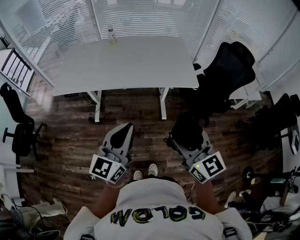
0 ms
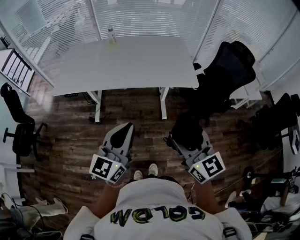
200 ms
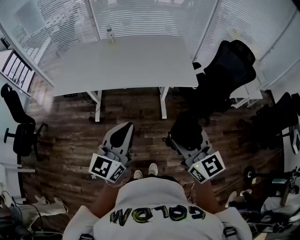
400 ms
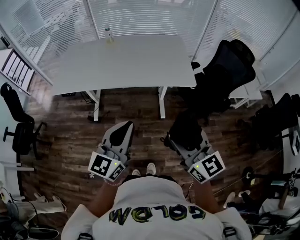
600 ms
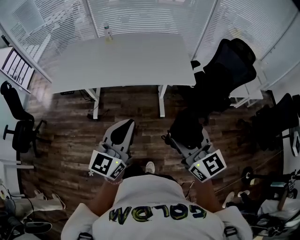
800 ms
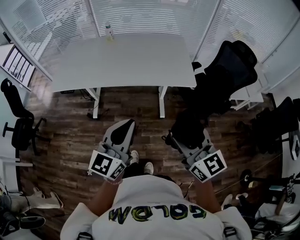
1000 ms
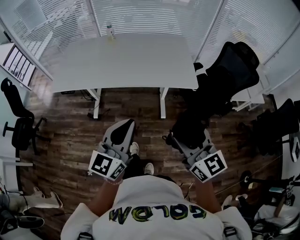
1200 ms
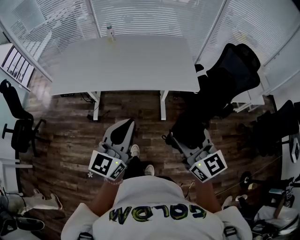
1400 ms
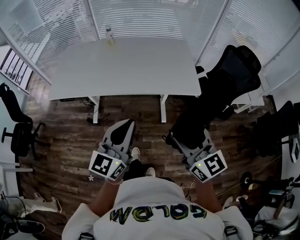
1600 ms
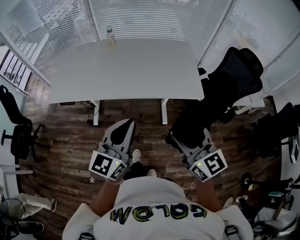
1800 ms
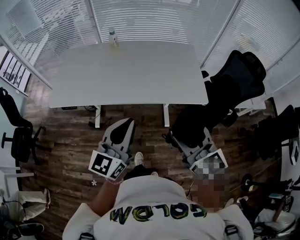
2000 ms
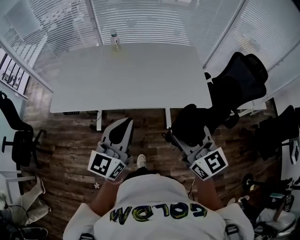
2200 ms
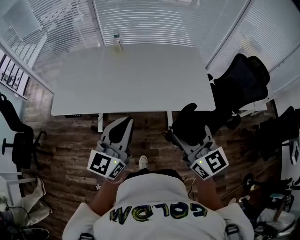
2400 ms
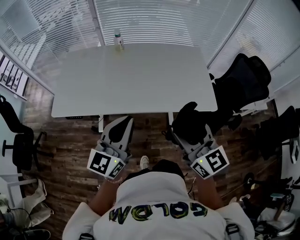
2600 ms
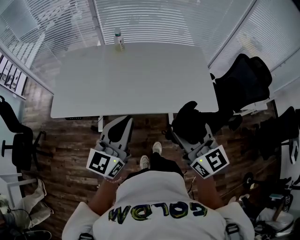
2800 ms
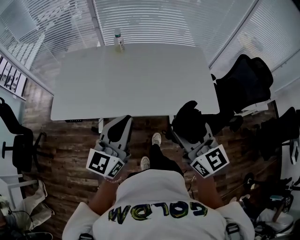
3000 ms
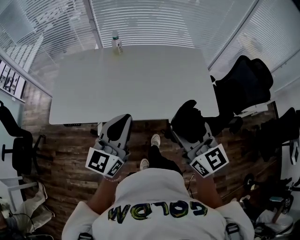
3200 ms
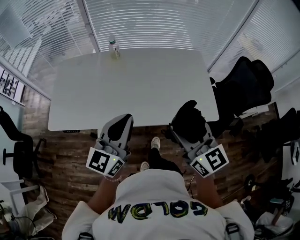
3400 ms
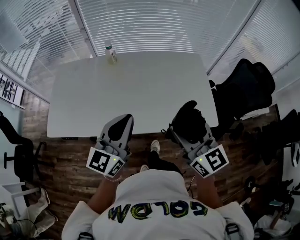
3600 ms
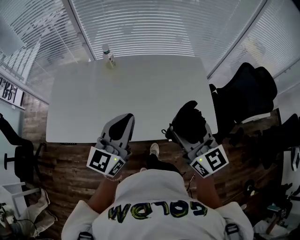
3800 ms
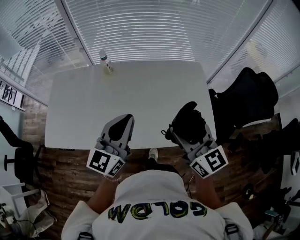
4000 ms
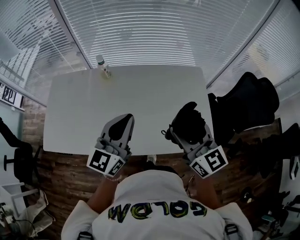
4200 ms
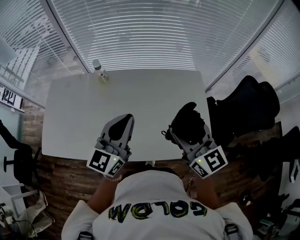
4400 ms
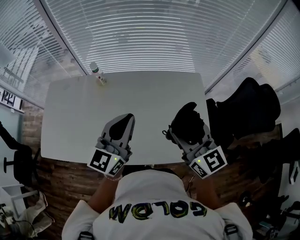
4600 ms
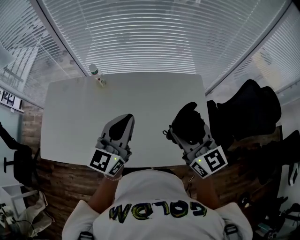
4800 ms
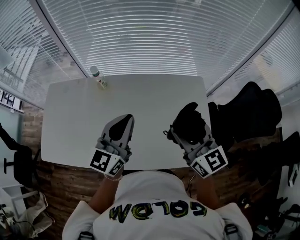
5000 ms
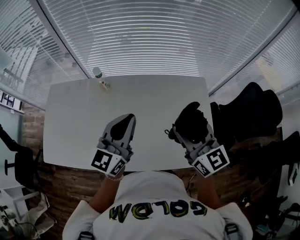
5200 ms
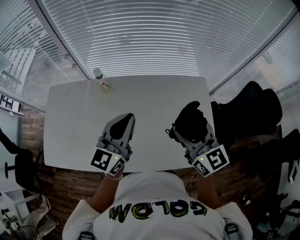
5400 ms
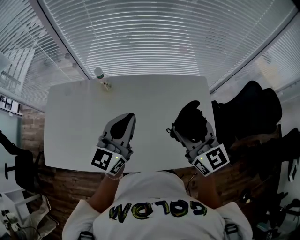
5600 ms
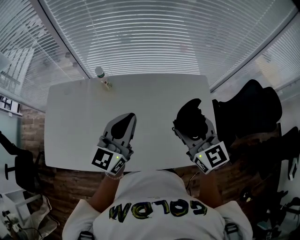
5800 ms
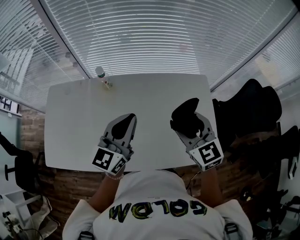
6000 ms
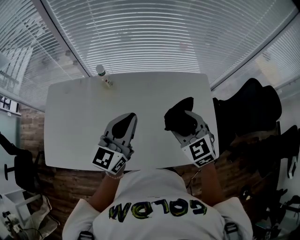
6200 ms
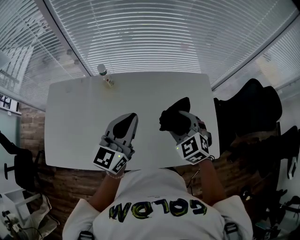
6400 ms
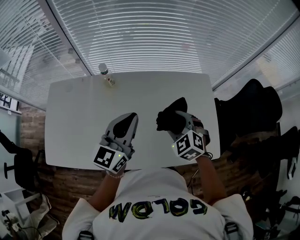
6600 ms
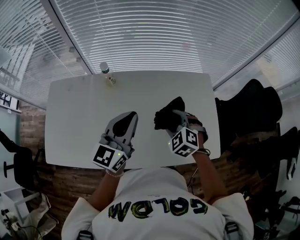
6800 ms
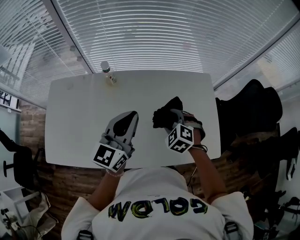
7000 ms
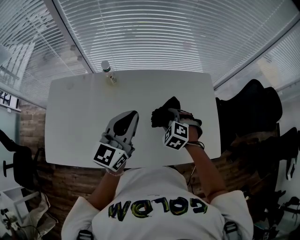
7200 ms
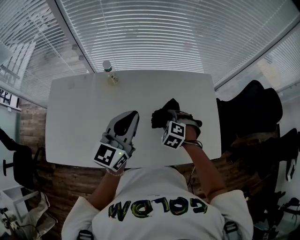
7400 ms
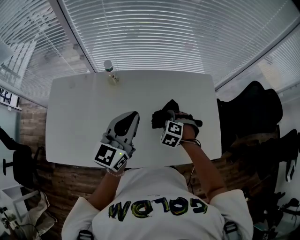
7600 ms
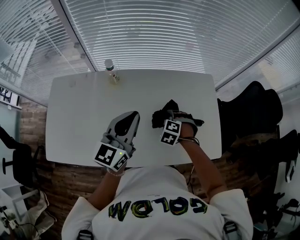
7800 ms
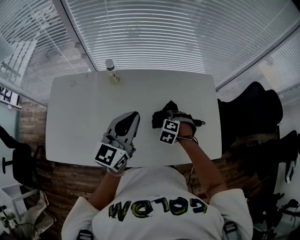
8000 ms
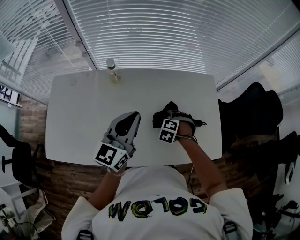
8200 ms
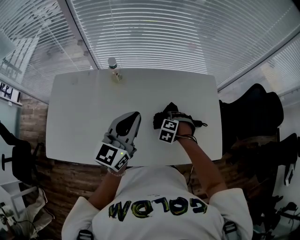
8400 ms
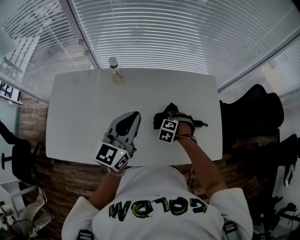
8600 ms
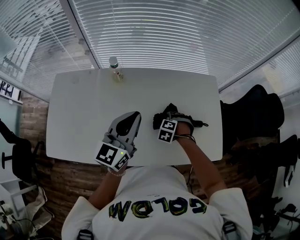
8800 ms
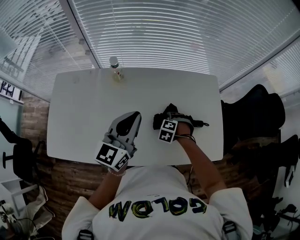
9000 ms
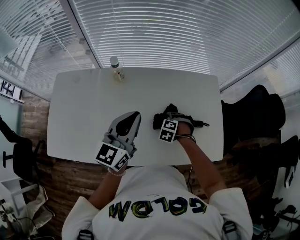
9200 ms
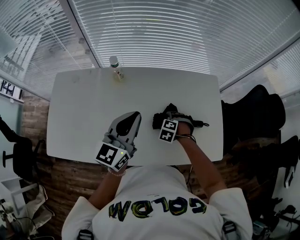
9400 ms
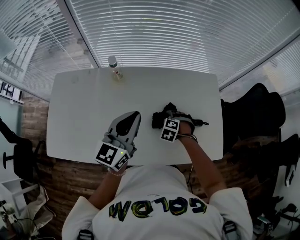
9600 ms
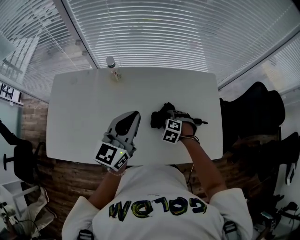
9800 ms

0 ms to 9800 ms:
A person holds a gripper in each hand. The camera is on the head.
0 ms to 1400 ms: Both grippers move forward, some 5 cm.
1400 ms to 2800 ms: The two grippers go about 25 cm forward and to the left.
2800 ms to 4200 ms: Both grippers move forward, about 25 cm.
4200 ms to 5600 ms: The two grippers go about 10 cm forward.
5600 ms to 7000 ms: The right gripper shifts approximately 20 cm downward, and tips its fingers downward by about 50 degrees.
7000 ms to 8400 ms: The right gripper heads downward, covering roughly 15 cm, and changes its angle by roughly 20 degrees.
8400 ms to 9800 ms: There are only small adjustments of the grippers.

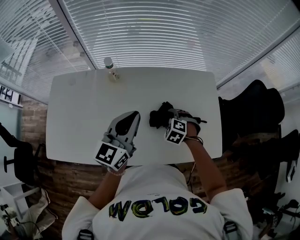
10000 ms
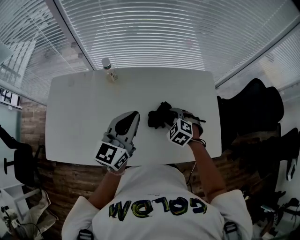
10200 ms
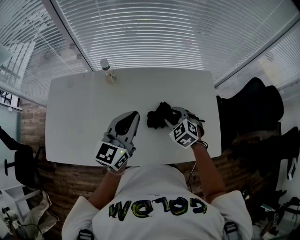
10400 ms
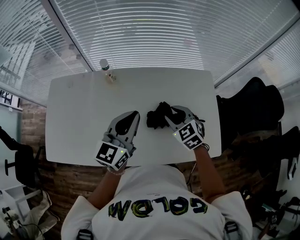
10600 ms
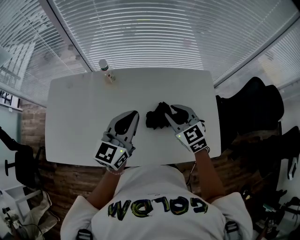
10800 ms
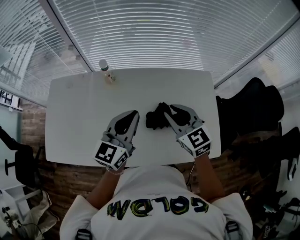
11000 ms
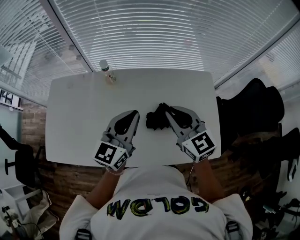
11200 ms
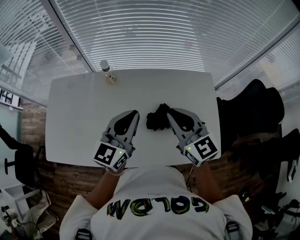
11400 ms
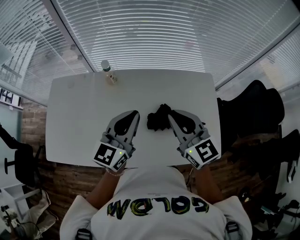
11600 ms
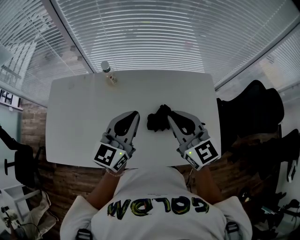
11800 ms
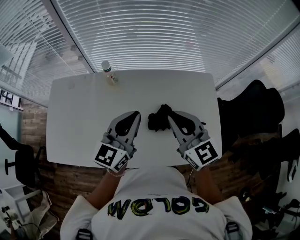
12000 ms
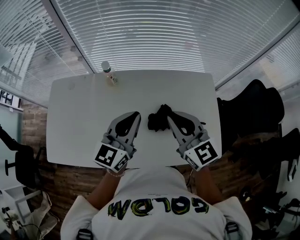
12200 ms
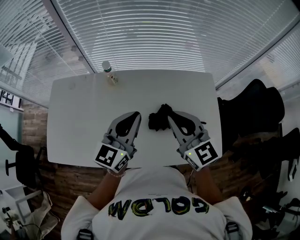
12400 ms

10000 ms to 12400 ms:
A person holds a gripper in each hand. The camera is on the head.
10000 ms to 11200 ms: The right gripper is displaced upward by approximately 25 cm, angles its fingers upward, by roughly 50 degrees, and closes up.
11200 ms to 12400 ms: The grippers make only small movements.

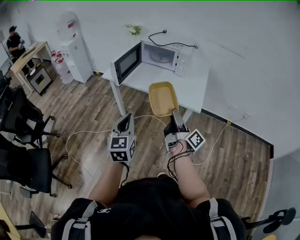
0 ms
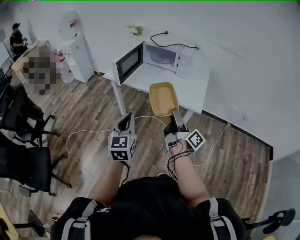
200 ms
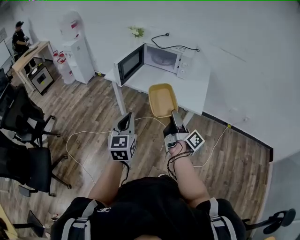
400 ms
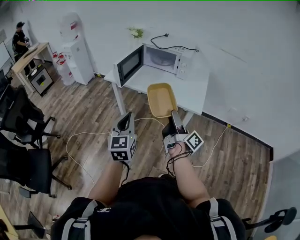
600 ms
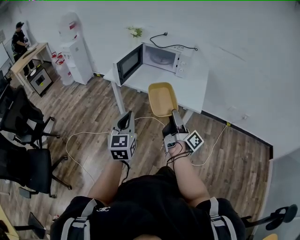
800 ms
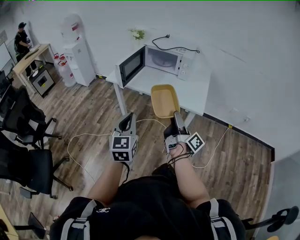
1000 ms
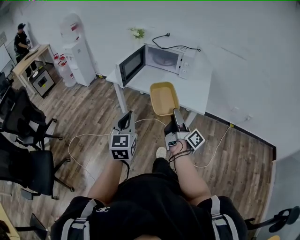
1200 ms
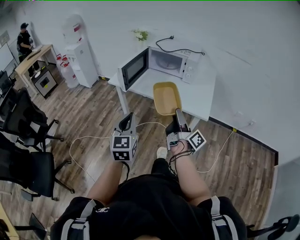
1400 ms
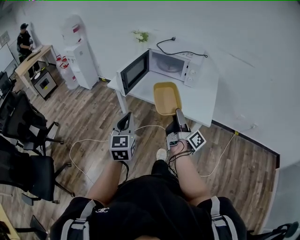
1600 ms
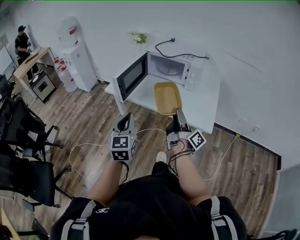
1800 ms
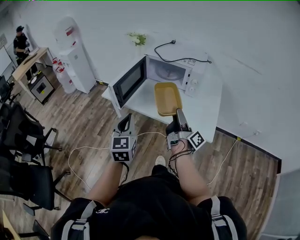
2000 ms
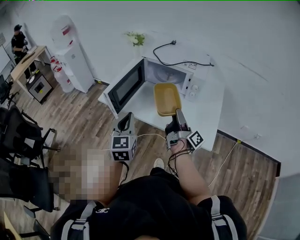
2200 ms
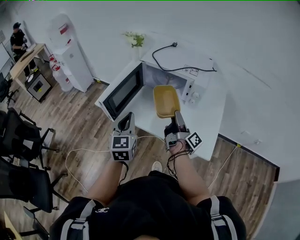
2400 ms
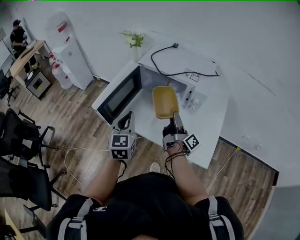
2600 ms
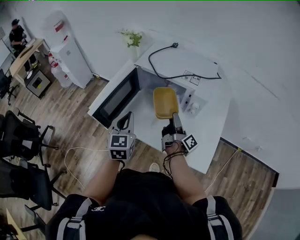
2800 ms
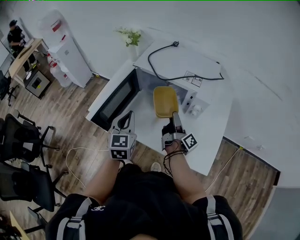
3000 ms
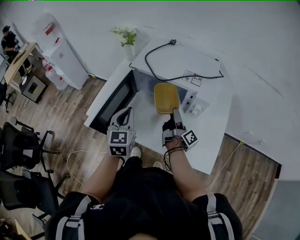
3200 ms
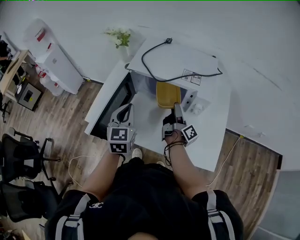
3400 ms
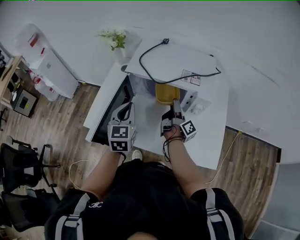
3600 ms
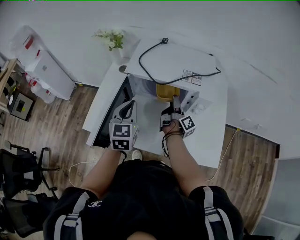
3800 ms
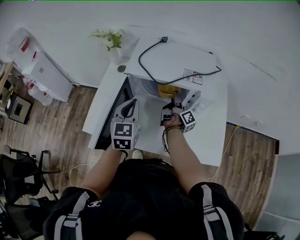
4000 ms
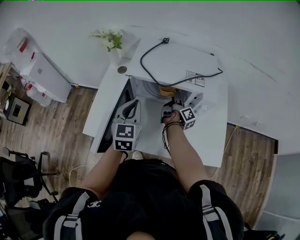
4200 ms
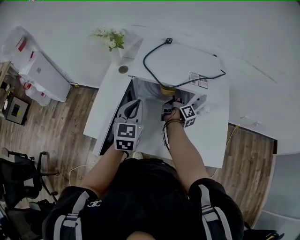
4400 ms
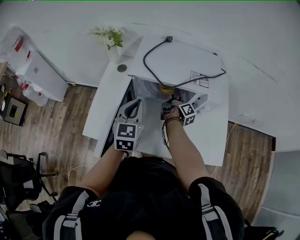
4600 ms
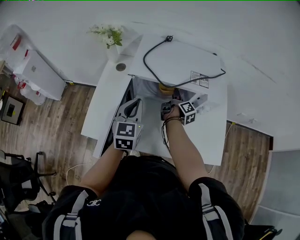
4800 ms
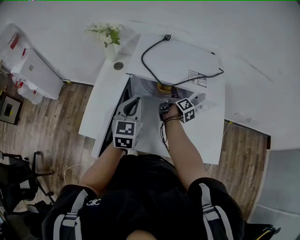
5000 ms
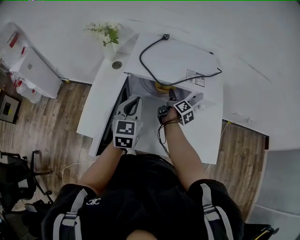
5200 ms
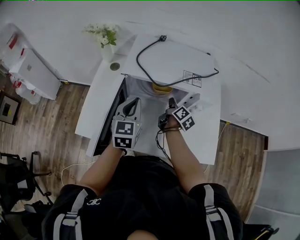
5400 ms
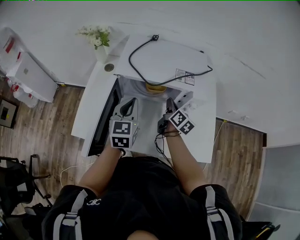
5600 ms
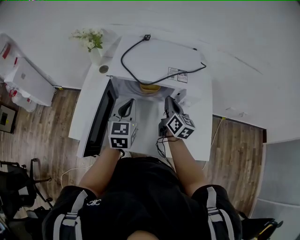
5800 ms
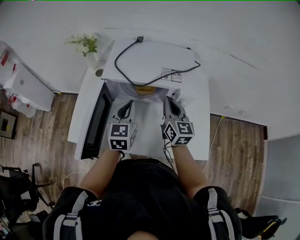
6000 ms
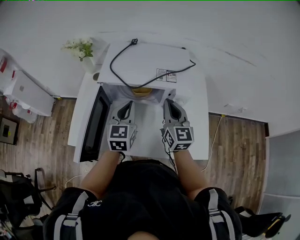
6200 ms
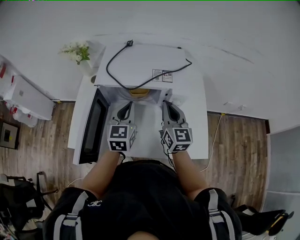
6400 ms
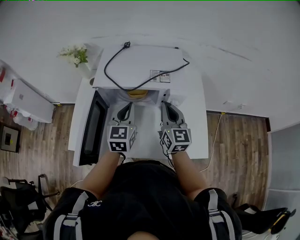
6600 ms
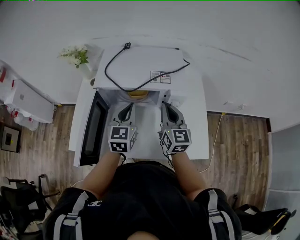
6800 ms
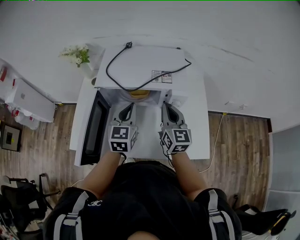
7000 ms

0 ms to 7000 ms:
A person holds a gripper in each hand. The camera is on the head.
1400 ms to 2800 ms: The left gripper ends up approximately 50 cm from where it was.
2800 ms to 4200 ms: The left gripper ends up roughly 20 cm from where it was.
5600 ms to 7000 ms: The left gripper moves about 10 cm.

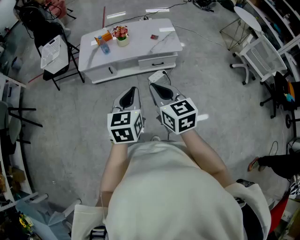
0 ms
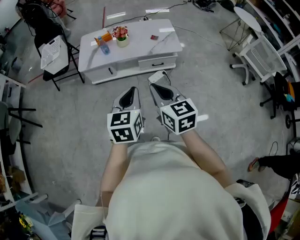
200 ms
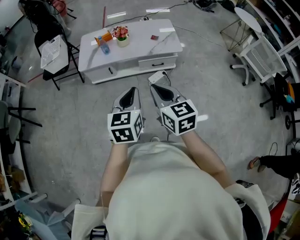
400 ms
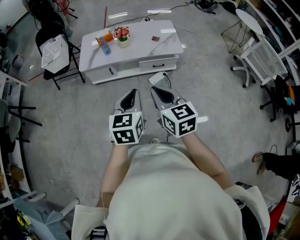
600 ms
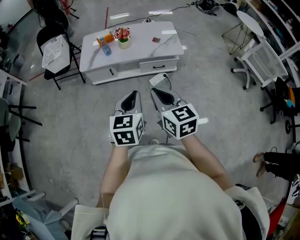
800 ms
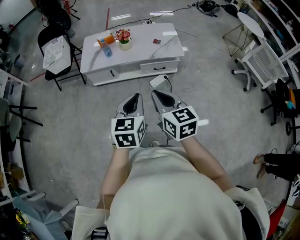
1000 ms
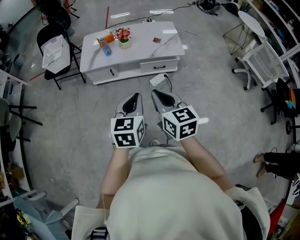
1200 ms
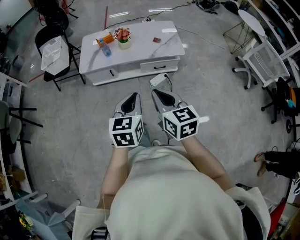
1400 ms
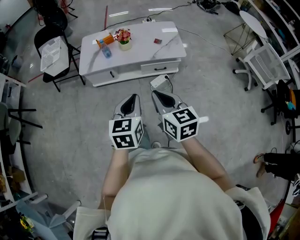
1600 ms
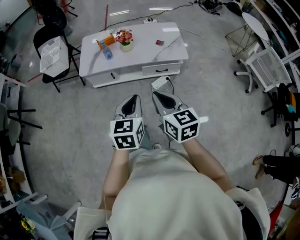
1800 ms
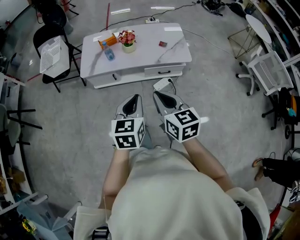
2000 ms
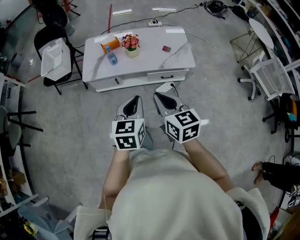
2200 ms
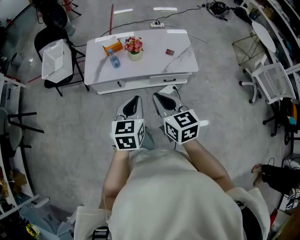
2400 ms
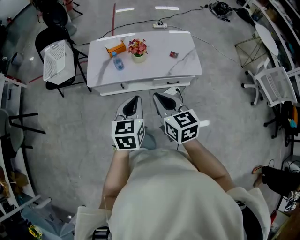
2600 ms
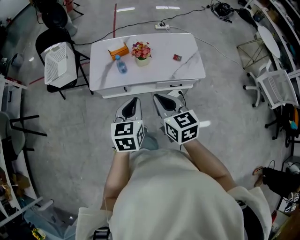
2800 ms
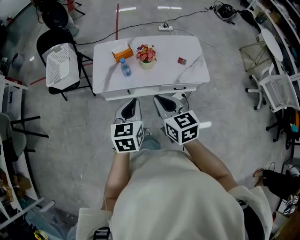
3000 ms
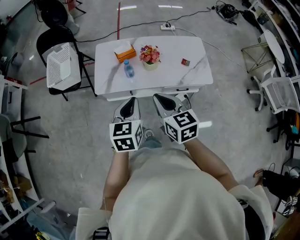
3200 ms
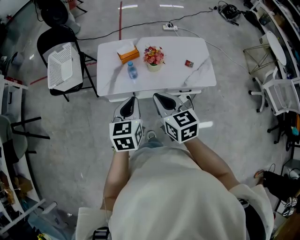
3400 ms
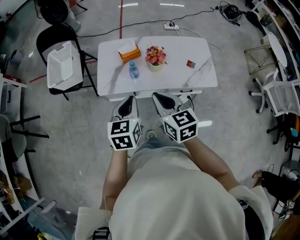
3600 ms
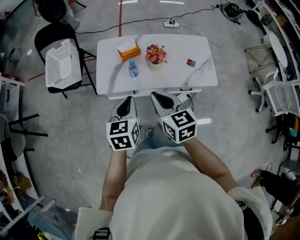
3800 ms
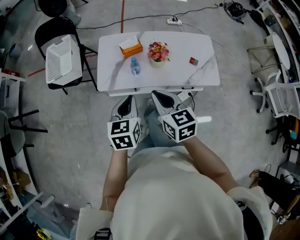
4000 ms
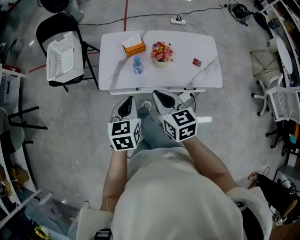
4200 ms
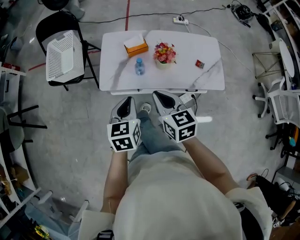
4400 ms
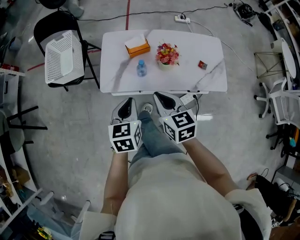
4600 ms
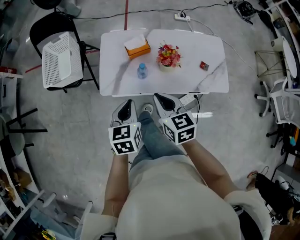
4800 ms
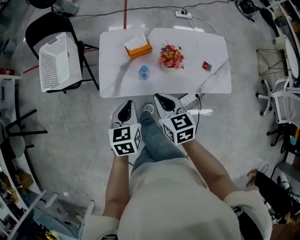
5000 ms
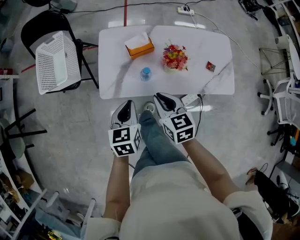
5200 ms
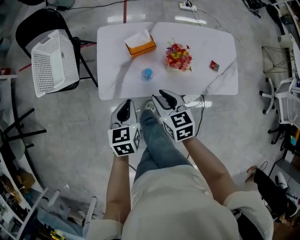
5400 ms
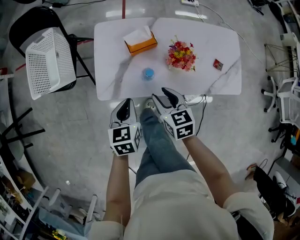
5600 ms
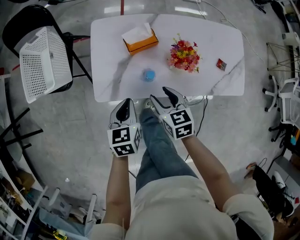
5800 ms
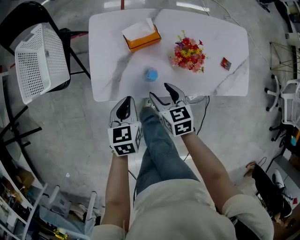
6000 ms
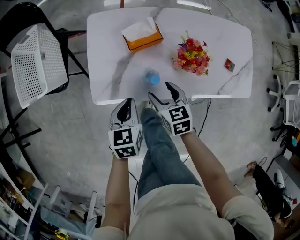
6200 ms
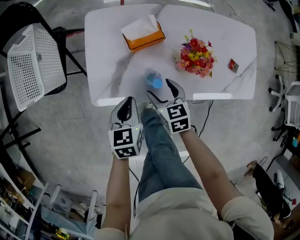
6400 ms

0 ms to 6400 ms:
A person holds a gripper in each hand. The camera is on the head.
0 ms to 1600 ms: The grippers stay close to where they were, moving slightly.
1600 ms to 3200 ms: Both grippers travel together forward and to the left, some 35 cm.
3200 ms to 4800 ms: Both grippers move forward, downward and to the left, about 20 cm.
4800 ms to 6400 ms: The grippers both shift downward and forward by some 30 cm. The right gripper opens its fingers.
